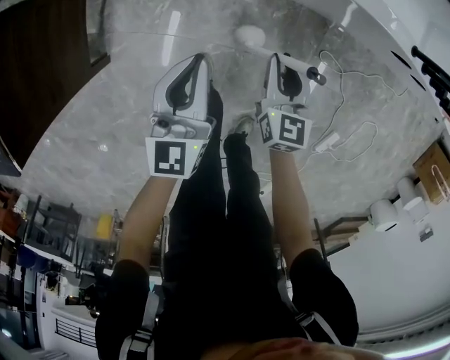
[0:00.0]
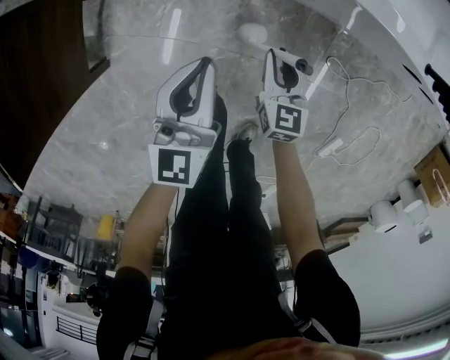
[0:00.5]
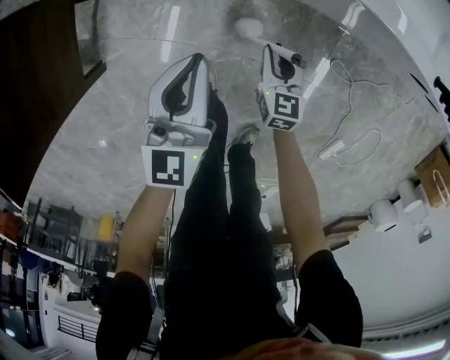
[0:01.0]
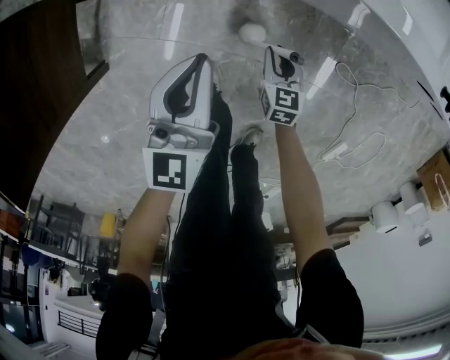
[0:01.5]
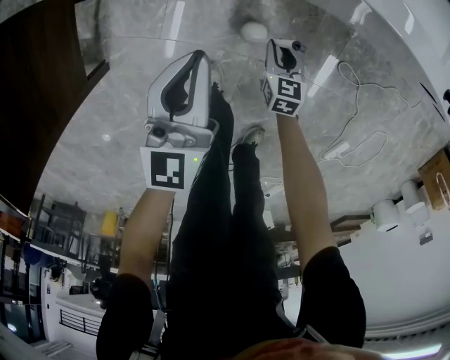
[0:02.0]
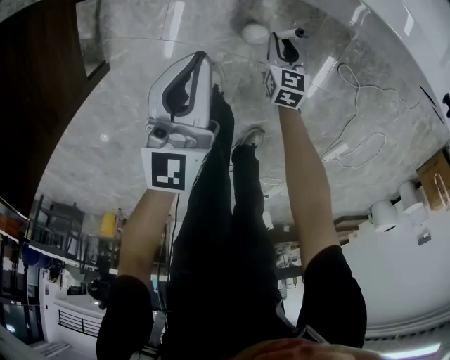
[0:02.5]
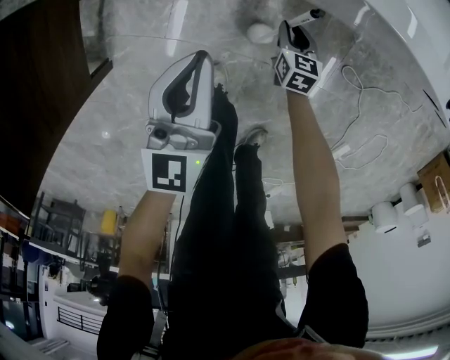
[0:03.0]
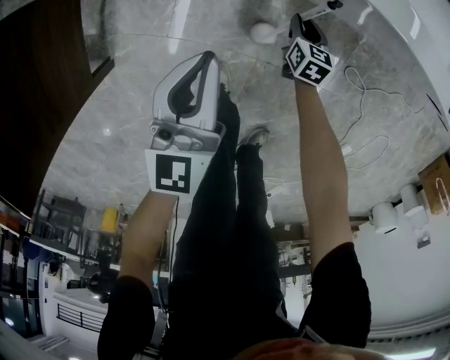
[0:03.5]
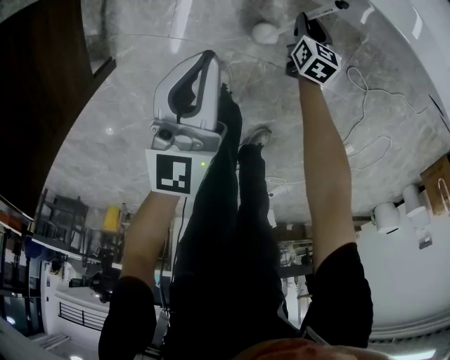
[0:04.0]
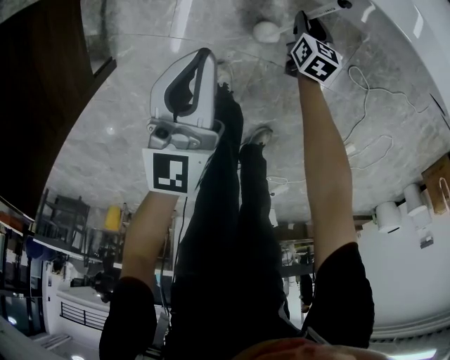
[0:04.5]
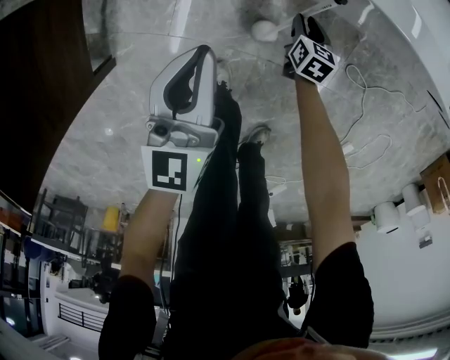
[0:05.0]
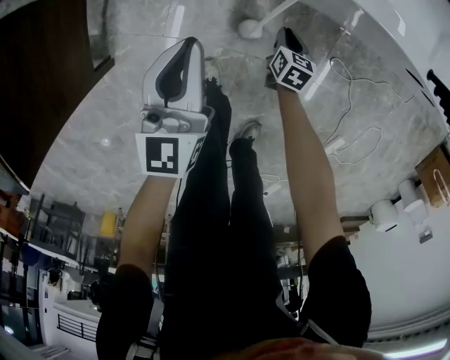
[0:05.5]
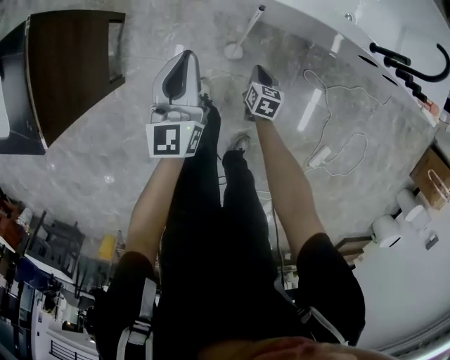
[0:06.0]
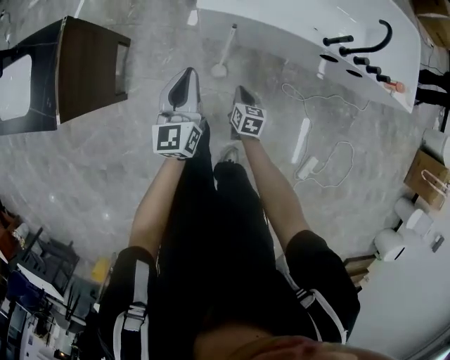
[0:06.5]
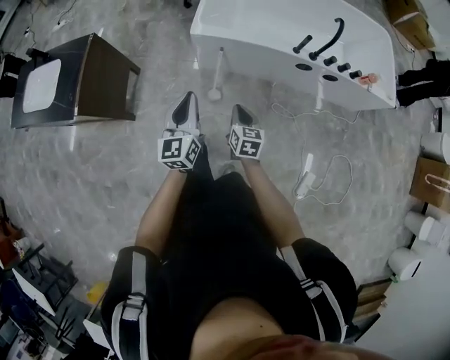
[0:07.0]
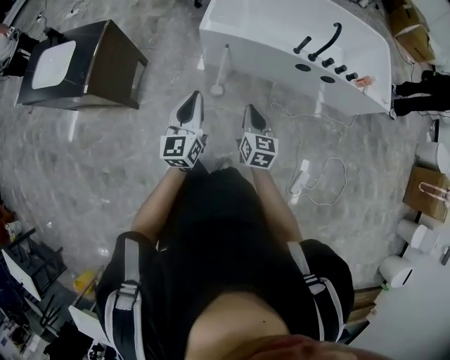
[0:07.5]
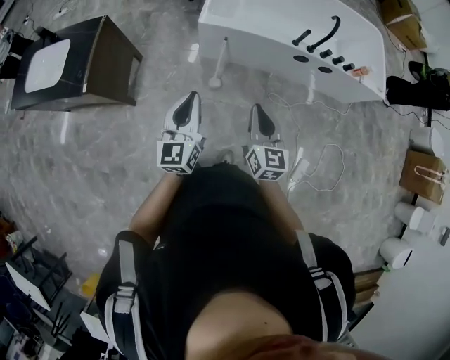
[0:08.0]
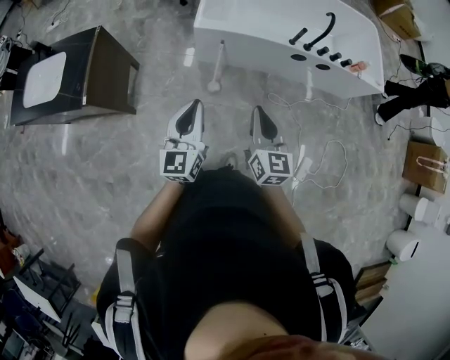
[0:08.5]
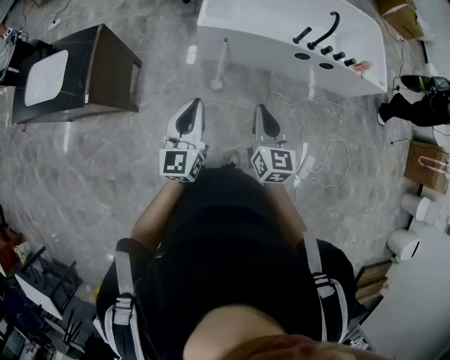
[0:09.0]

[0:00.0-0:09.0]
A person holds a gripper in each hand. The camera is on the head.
0:00.0 to 0:02.0: The right gripper is displaced downward by some 25 cm. Meanwhile the left gripper goes roughly 10 cm downward and forward.
0:02.0 to 0:04.5: The right gripper heads forward, covering roughly 10 cm.
0:04.5 to 0:07.0: The grippers both shift upward and backward by approximately 60 cm. The right gripper rotates about 20 degrees, and closes its fingers.
0:07.0 to 0:09.0: The left gripper goes about 15 cm backward and upward. Meanwhile the right gripper goes roughly 25 cm upward and backward.

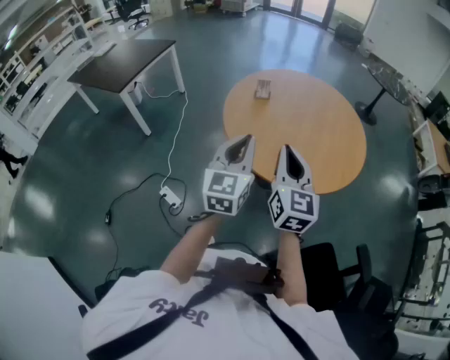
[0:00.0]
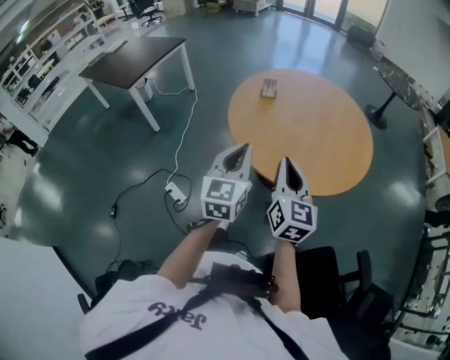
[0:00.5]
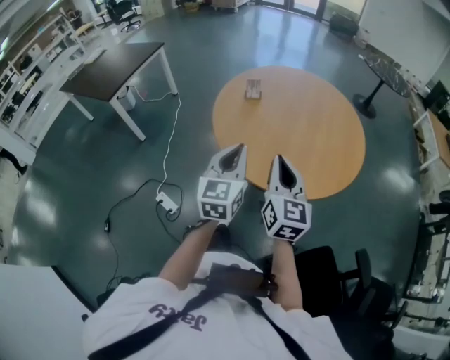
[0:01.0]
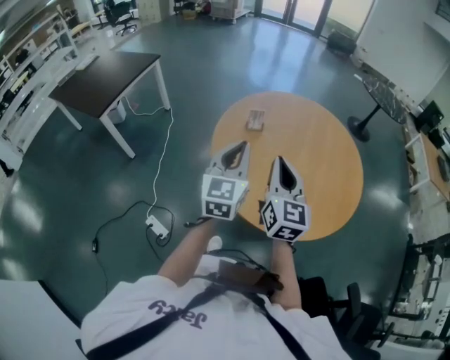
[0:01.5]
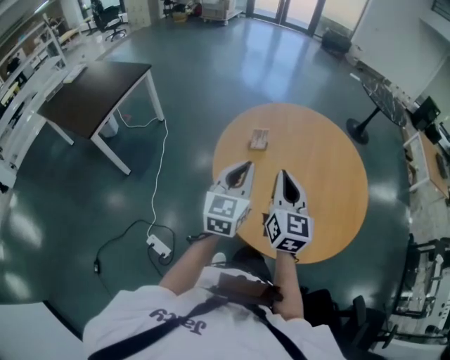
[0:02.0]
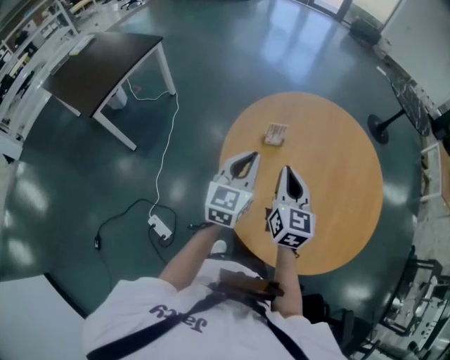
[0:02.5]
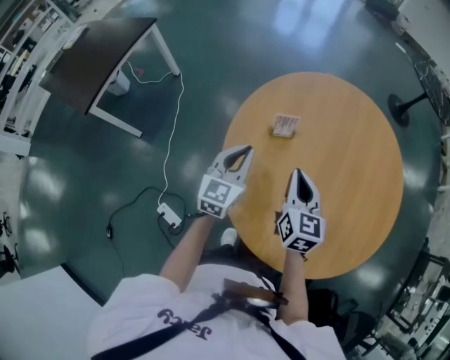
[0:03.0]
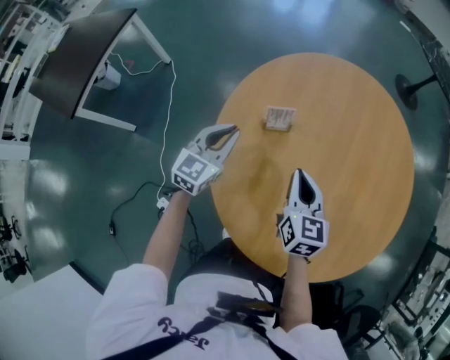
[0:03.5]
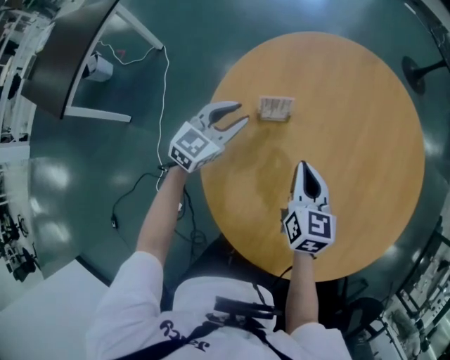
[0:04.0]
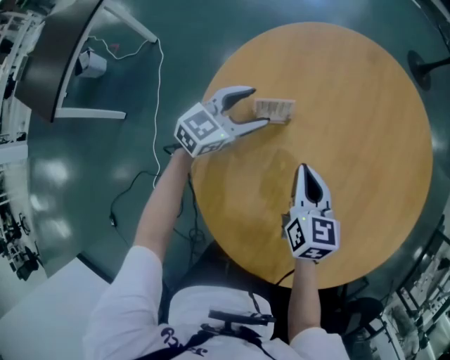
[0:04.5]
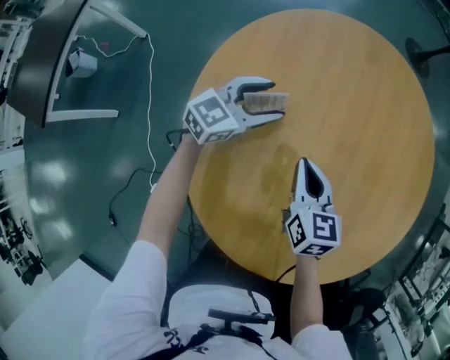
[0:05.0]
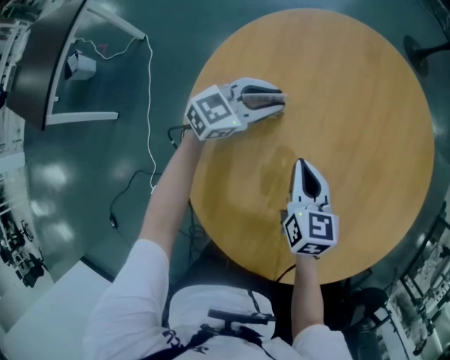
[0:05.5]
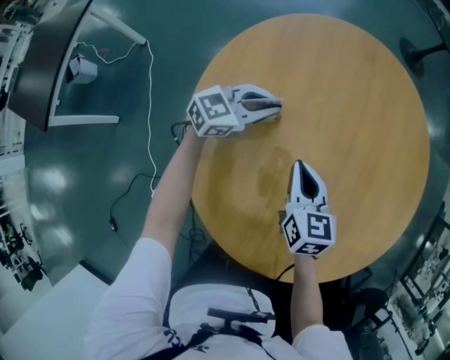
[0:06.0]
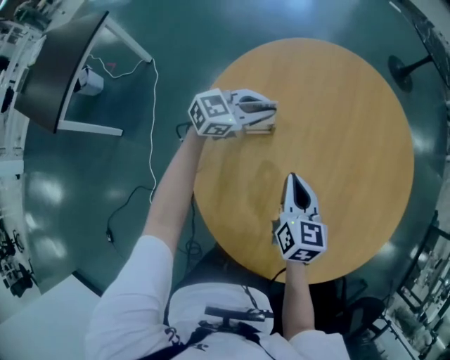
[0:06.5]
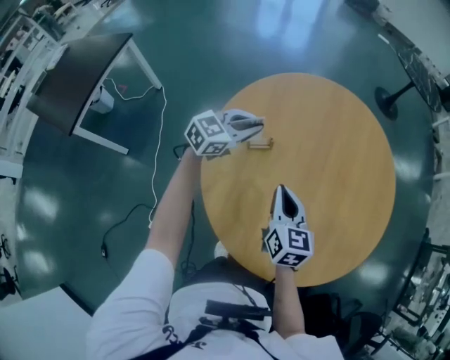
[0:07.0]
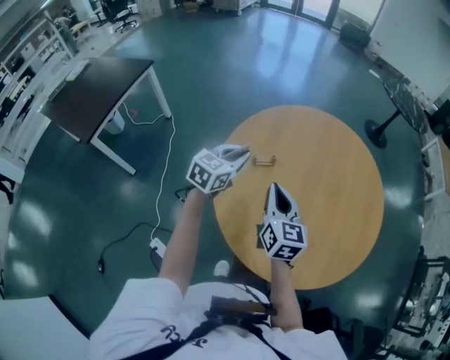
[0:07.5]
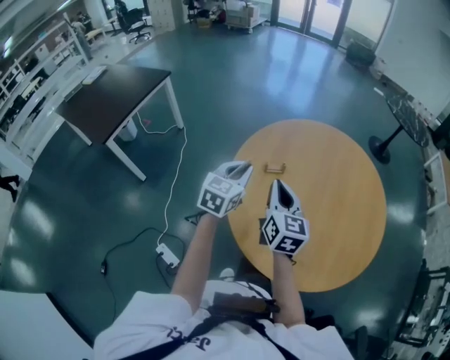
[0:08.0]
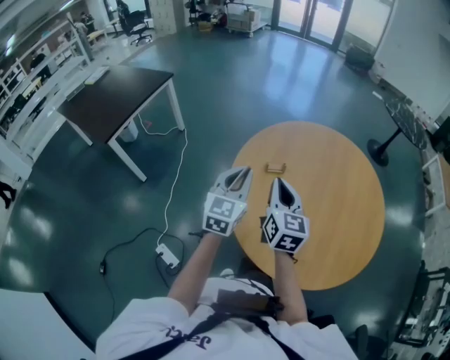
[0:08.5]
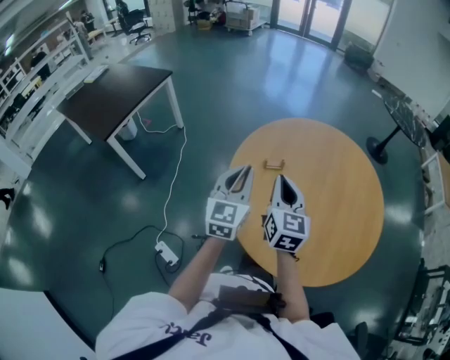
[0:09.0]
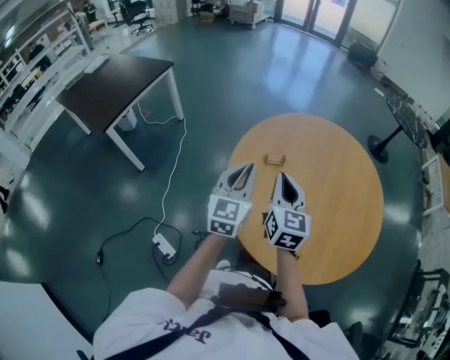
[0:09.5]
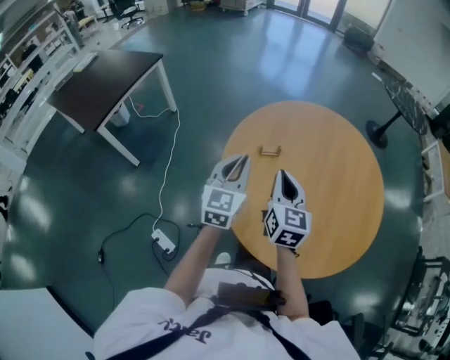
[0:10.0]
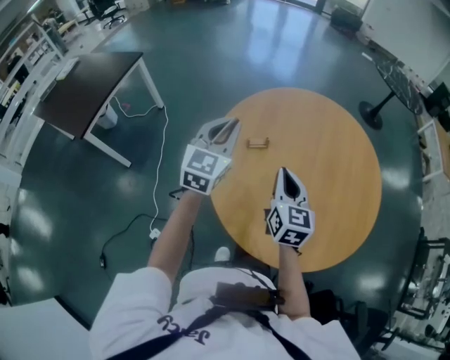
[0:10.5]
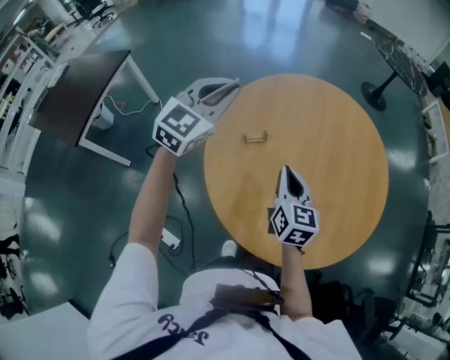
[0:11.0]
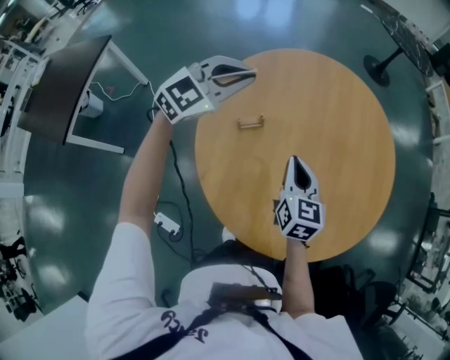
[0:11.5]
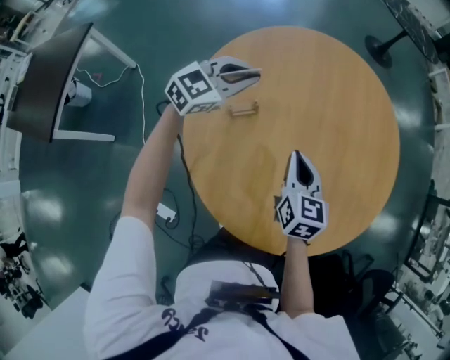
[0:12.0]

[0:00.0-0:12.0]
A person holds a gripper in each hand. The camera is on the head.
0:00.0 to 0:02.0: The two grippers go approximately 25 cm forward.
0:02.0 to 0:04.0: The left gripper is displaced forward and downward by approximately 35 cm, changes its angle by some 30 degrees, and opens its fingers; the right gripper moves downward and forward, roughly 30 cm, and rotates some 30 degrees.
0:04.0 to 0:06.0: The left gripper goes about 10 cm to the right and forward, changes its angle by about 30 degrees, and opens and closes again.
0:06.0 to 0:08.0: The left gripper moves about 30 cm, and turns by about 50 degrees; the right gripper heads upward, covering approximately 20 cm, and changes its angle by some 20 degrees.
0:10.0 to 0:12.0: The left gripper shifts by about 25 cm, and swivels about 60 degrees, while the right gripper ends up approximately 15 cm from where it was, and turns by roughly 20 degrees.

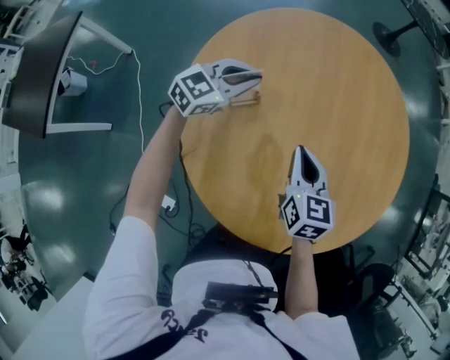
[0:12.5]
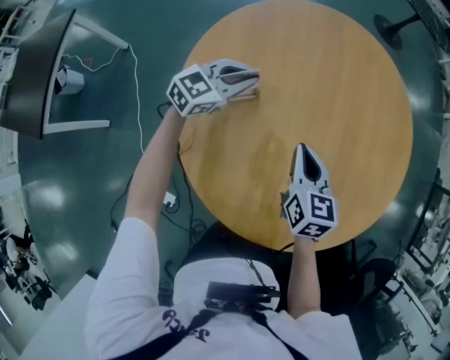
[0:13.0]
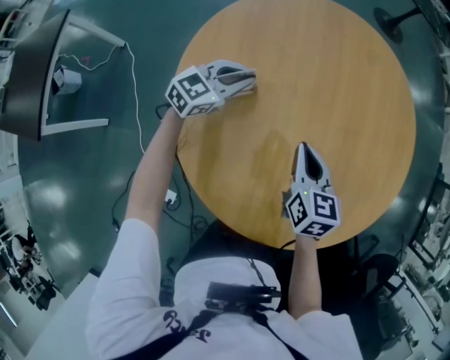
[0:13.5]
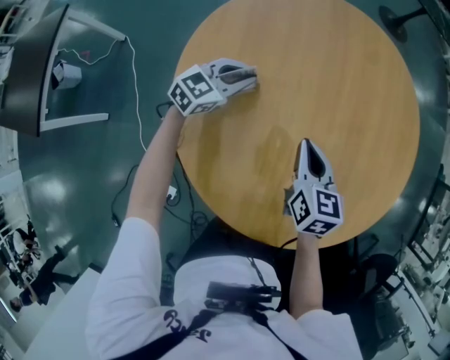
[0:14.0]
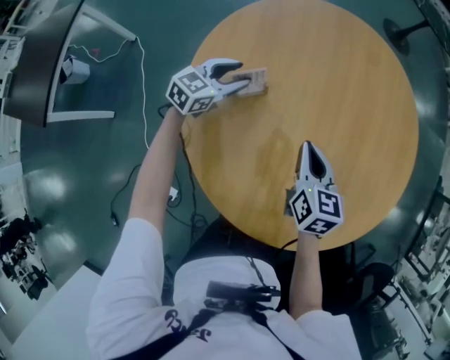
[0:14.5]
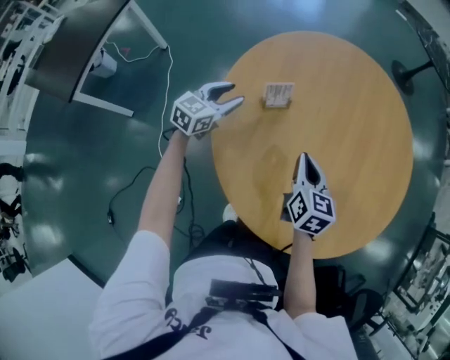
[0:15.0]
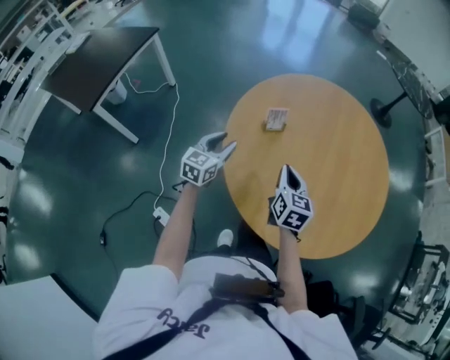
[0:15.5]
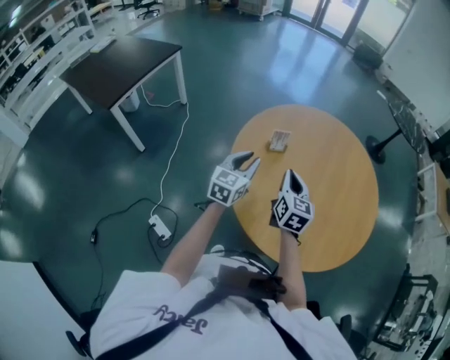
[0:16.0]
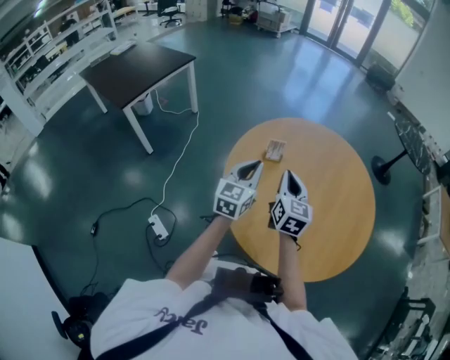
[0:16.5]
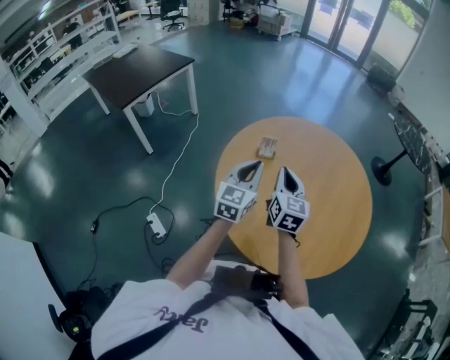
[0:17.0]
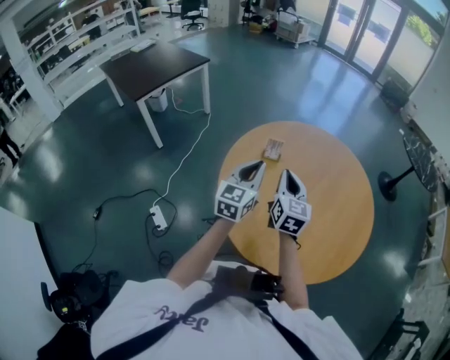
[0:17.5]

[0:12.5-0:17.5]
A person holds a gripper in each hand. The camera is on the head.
0:12.5 to 0:15.0: The right gripper ends up roughly 5 cm from where it was, while the left gripper shifts approximately 15 cm to the left, backward and downward, swivels approximately 30 degrees, and opens up.
0:15.0 to 0:17.5: The left gripper ends up roughly 35 cm from where it was, turns by some 40 degrees, and closes up, while the right gripper heads upward, covering roughly 15 cm, and swivels some 30 degrees.

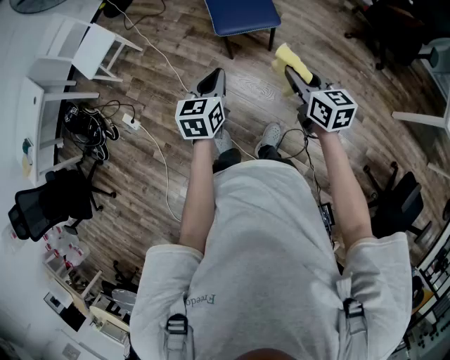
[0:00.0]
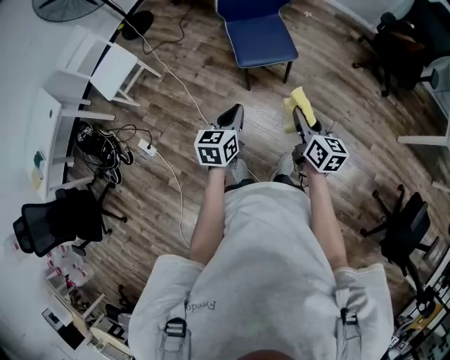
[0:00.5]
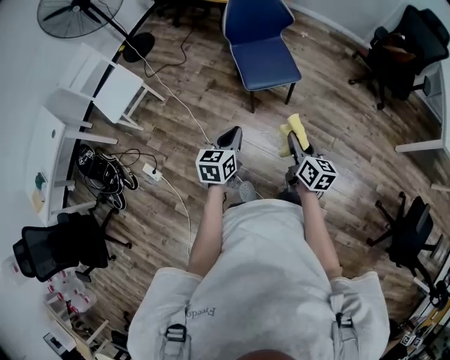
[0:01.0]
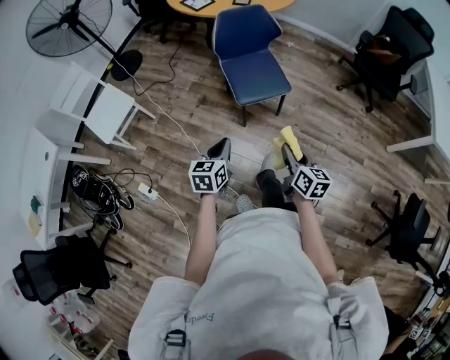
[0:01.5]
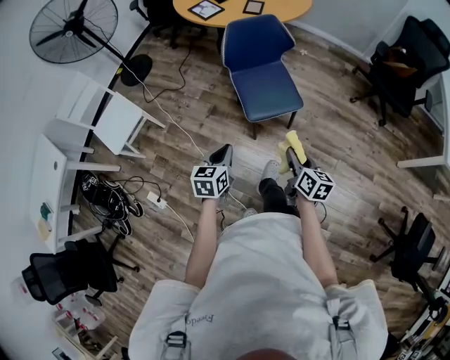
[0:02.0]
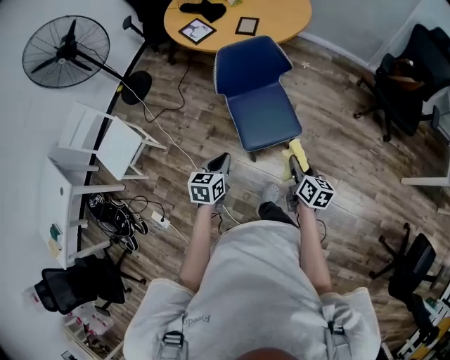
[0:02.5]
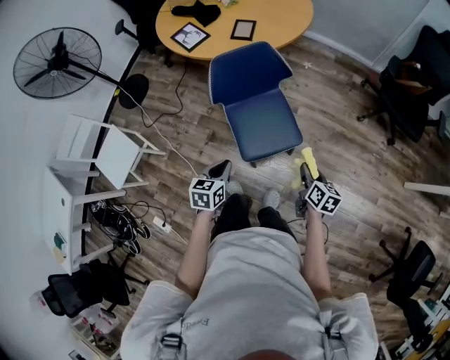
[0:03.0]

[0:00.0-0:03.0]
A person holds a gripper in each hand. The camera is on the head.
0:00.0 to 0:01.5: Both grippers travel together to the left, some 15 cm. The right gripper swivels roughly 30 degrees.
0:01.5 to 0:03.0: Both grippers move forward, some 30 cm.
